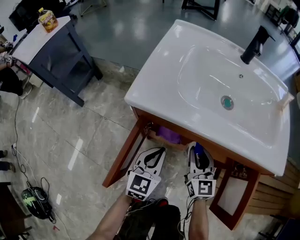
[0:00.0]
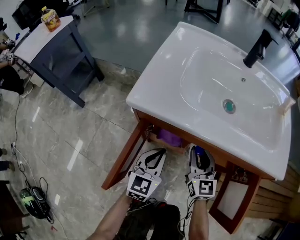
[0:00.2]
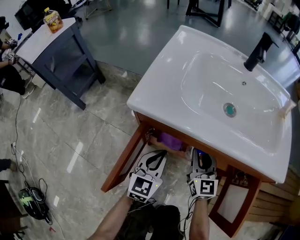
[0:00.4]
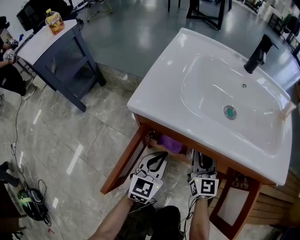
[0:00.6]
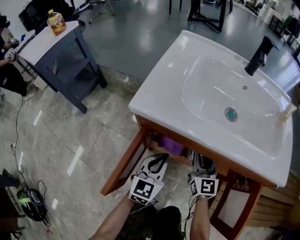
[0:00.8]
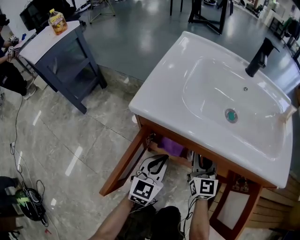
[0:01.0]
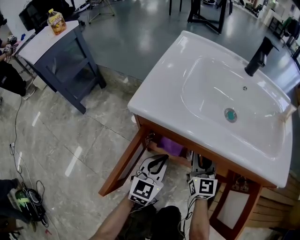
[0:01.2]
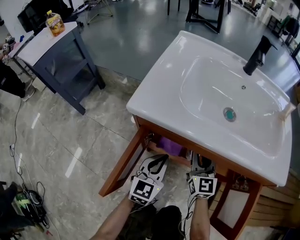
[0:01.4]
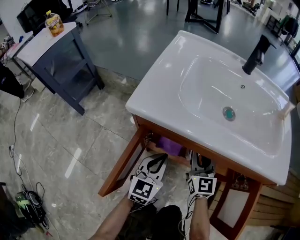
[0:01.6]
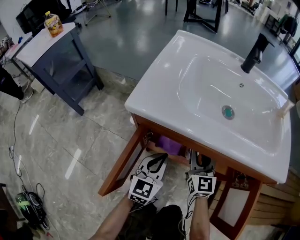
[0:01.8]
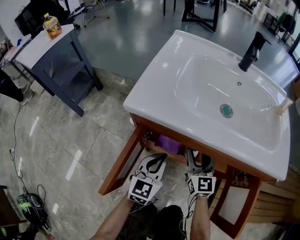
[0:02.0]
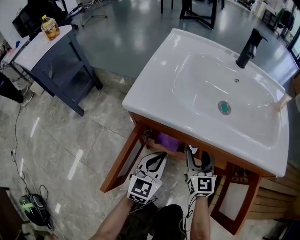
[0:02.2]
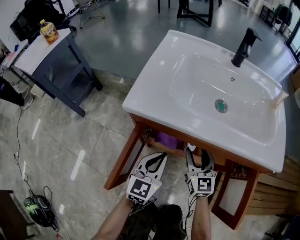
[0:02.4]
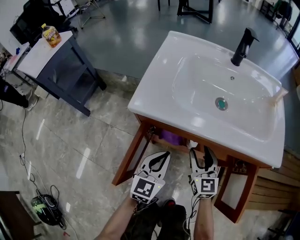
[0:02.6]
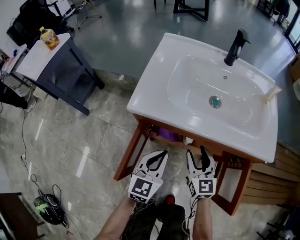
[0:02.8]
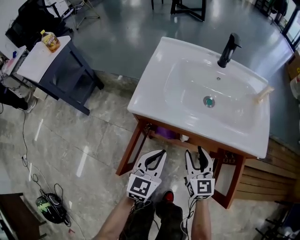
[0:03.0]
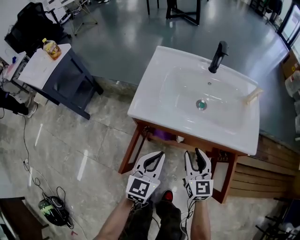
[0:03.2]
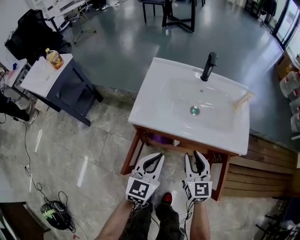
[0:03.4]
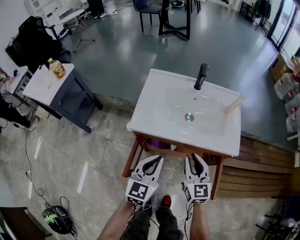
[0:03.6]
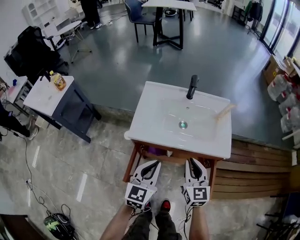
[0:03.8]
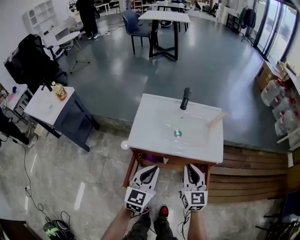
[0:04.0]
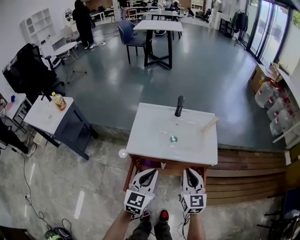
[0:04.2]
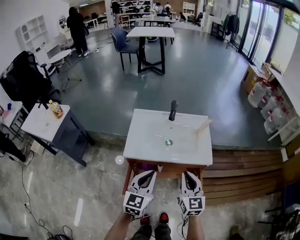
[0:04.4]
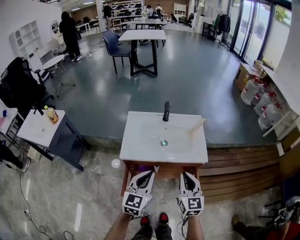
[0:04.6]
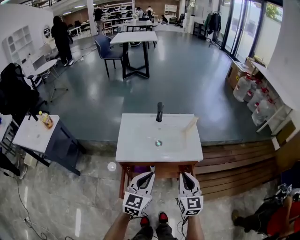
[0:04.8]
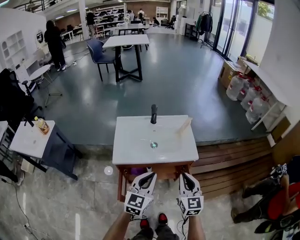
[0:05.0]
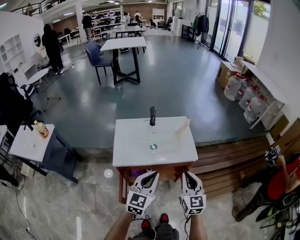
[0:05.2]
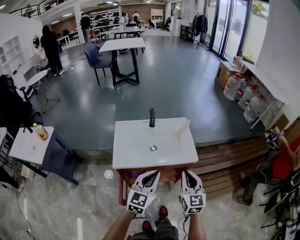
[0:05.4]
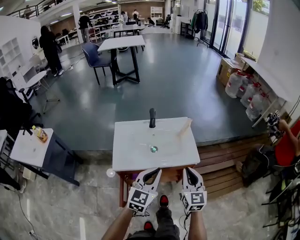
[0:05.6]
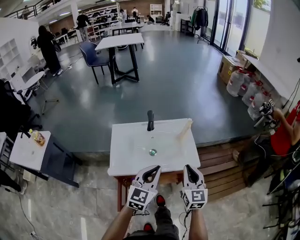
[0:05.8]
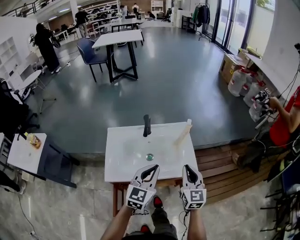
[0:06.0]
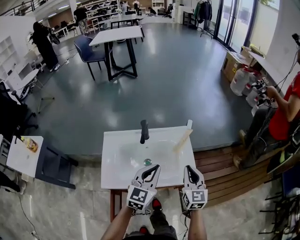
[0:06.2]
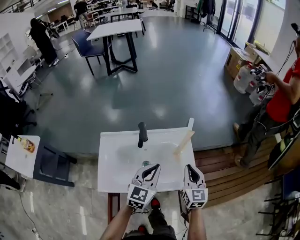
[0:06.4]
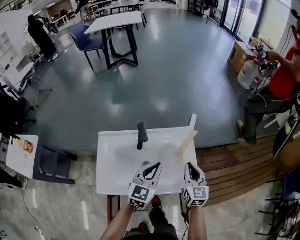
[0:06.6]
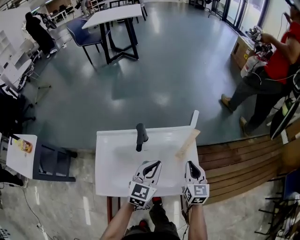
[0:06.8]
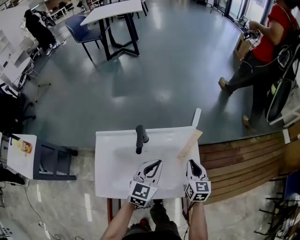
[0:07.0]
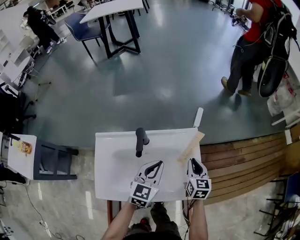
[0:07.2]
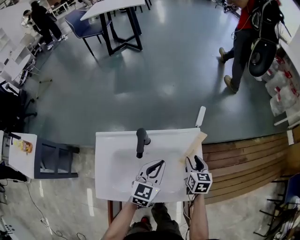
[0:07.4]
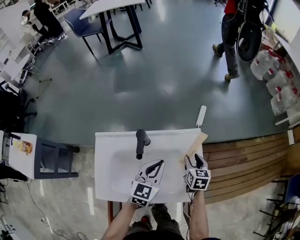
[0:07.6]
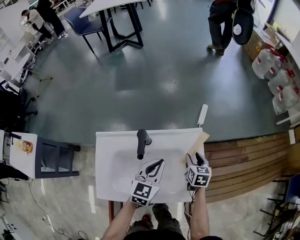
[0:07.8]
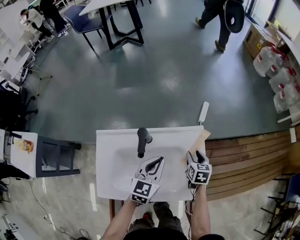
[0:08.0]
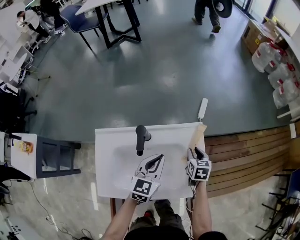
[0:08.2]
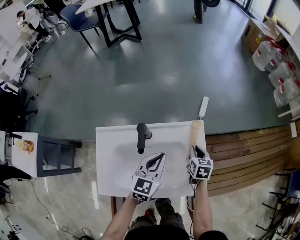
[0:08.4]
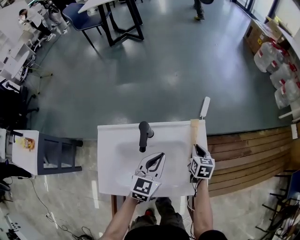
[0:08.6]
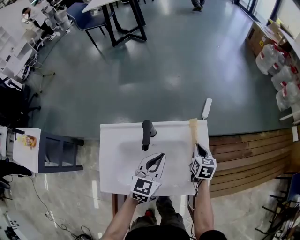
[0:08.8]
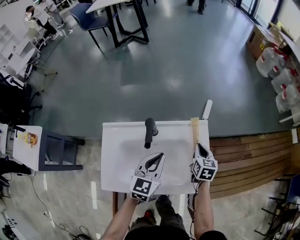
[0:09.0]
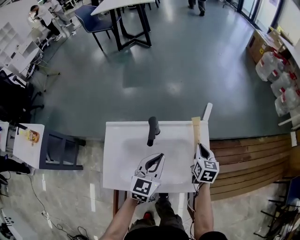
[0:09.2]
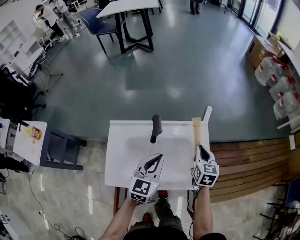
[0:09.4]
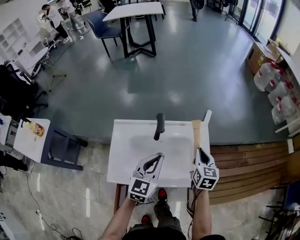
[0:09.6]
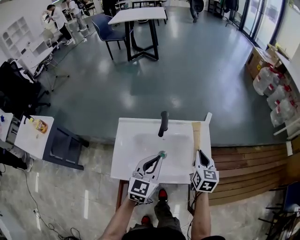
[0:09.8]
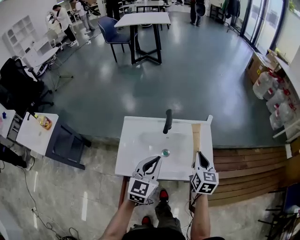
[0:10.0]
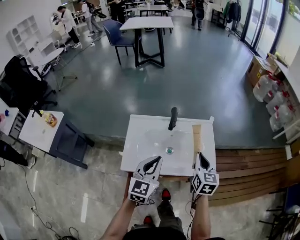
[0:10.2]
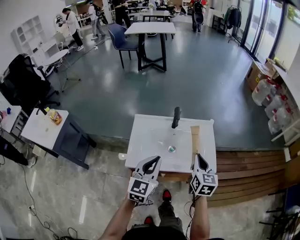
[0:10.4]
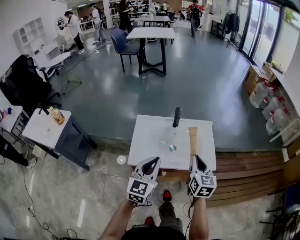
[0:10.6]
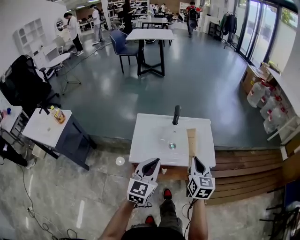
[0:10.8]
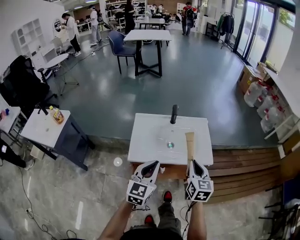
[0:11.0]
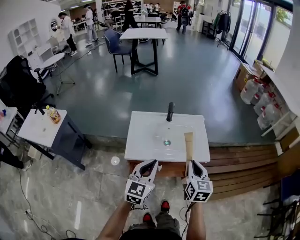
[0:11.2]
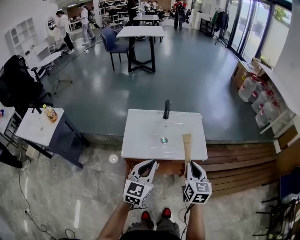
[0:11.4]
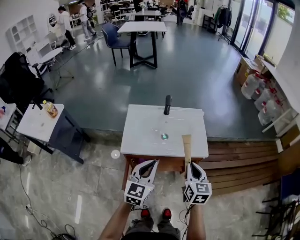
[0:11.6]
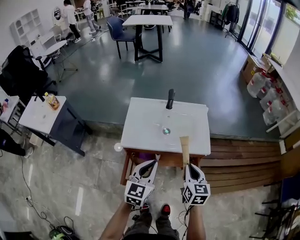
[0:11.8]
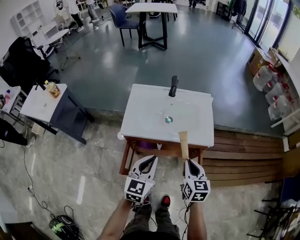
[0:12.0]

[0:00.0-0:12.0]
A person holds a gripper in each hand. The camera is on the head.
0:00.0 to 0:01.6: The right gripper heads forward, covering roughly 5 cm.
0:01.6 to 0:03.0: Both grippers travel together upward and backward, approximately 15 cm. The right gripper opens its fingers.
0:03.0 to 0:04.4: Both grippers travel together upward, about 30 cm. The right gripper closes up.
0:04.4 to 0:06.0: Both grippers travel together forward and to the right, some 15 cm.
0:06.0 to 0:07.6: The grippers both shift forward and downward by approximately 30 cm. The right gripper tilts its fingers approximately 30 degrees downward, and opens its fingers.
0:07.6 to 0:09.0: The right gripper closes.
0:09.0 to 0:10.4: The two grippers go roughly 30 cm backward and upward. The right gripper rotates some 20 degrees.
0:10.4 to 0:12.0: The right gripper goes some 15 cm backward. Meanwhile the left gripper goes approximately 15 cm backward and downward.

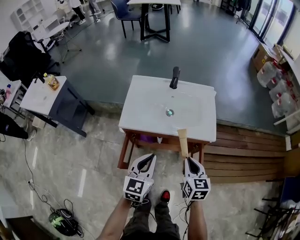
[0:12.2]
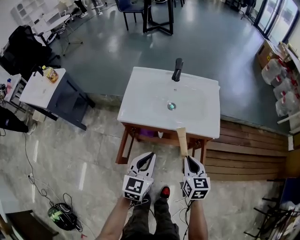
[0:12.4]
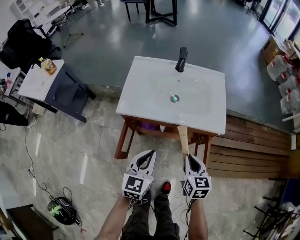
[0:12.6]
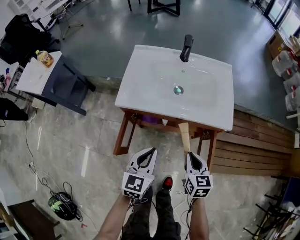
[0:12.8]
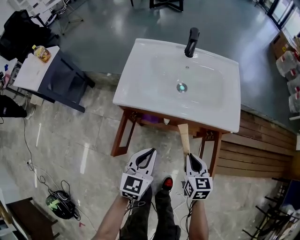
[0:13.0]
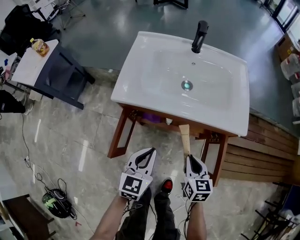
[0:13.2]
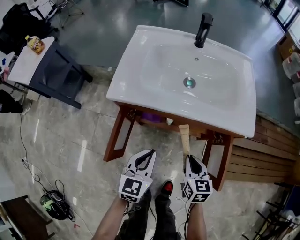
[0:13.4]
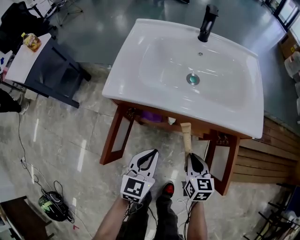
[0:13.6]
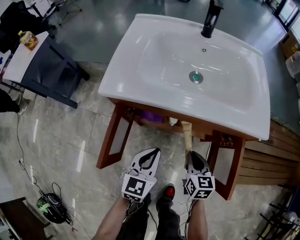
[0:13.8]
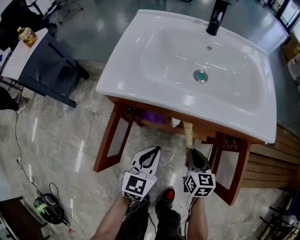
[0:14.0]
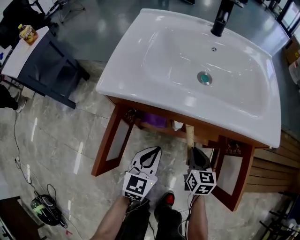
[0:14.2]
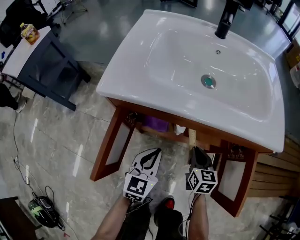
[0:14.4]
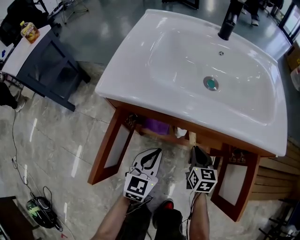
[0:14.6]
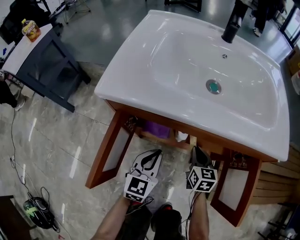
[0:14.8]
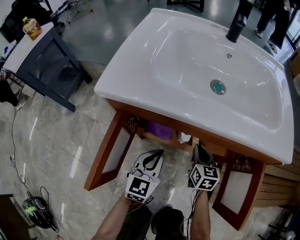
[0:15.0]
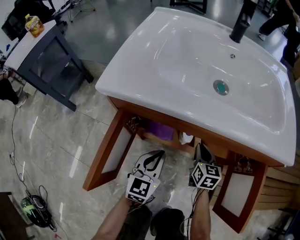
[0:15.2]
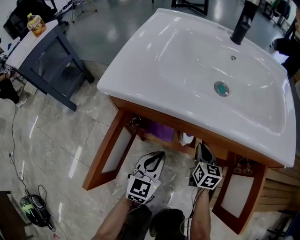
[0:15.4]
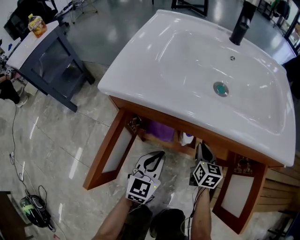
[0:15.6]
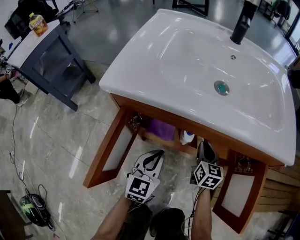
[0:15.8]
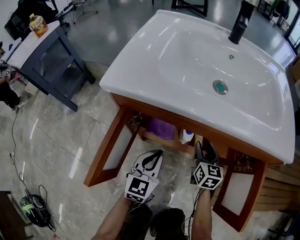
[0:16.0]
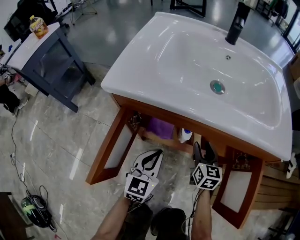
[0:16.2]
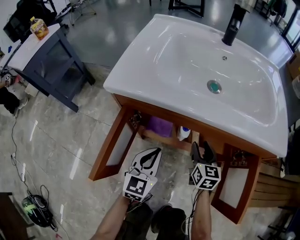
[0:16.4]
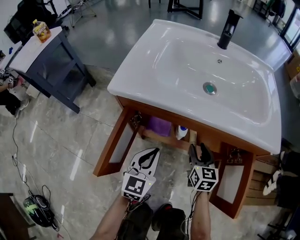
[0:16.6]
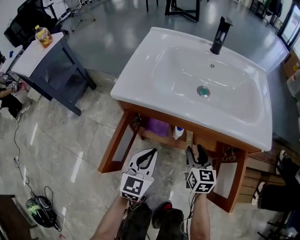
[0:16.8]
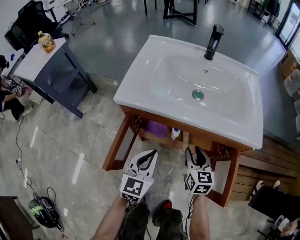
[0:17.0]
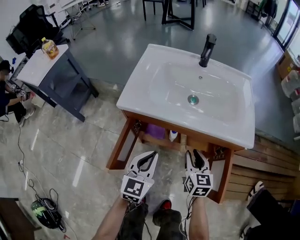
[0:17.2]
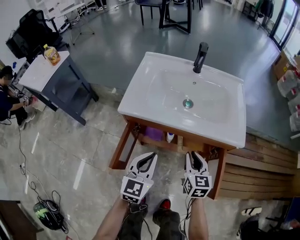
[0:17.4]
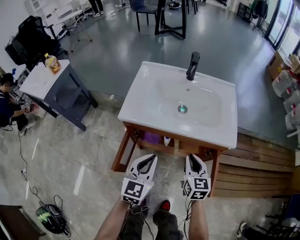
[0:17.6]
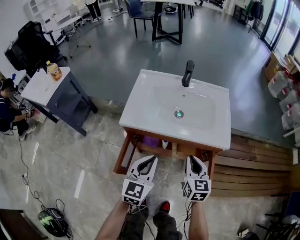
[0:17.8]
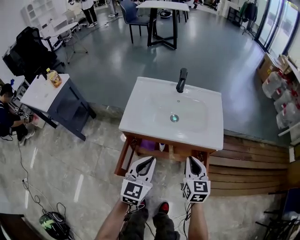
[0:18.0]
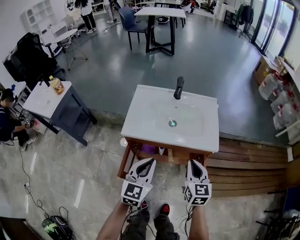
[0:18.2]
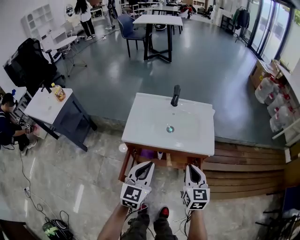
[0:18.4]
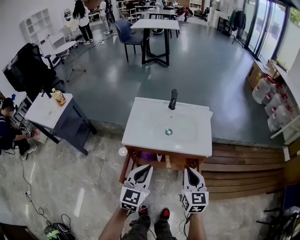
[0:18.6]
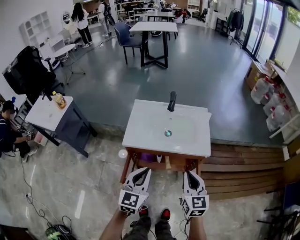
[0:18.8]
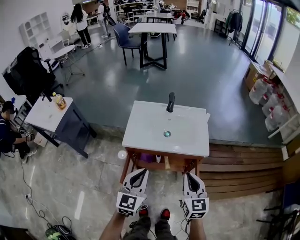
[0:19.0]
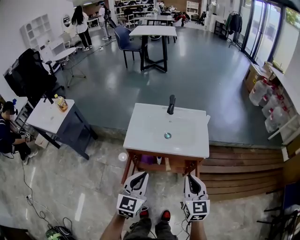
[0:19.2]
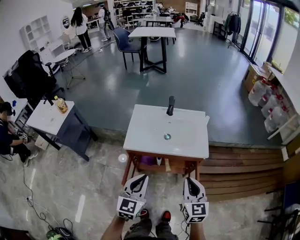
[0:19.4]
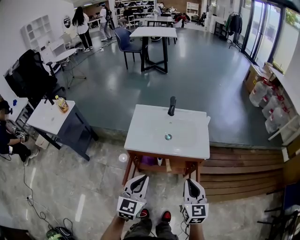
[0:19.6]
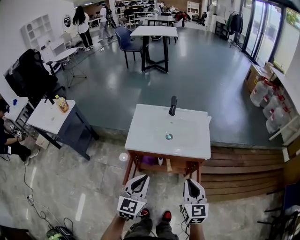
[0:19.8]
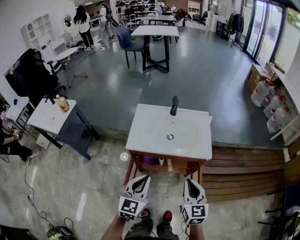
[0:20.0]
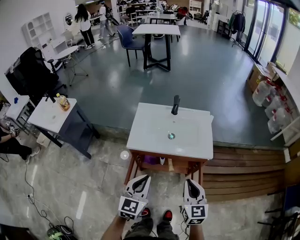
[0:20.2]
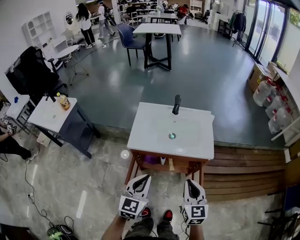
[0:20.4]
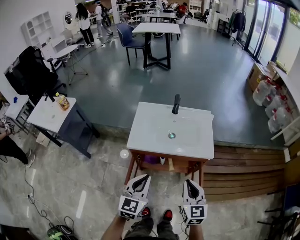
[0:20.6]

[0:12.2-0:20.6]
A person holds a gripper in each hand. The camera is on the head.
0:12.2 to 0:13.6: Both grippers move downward, about 30 cm.
0:13.6 to 0:15.0: The grippers both shift downward and forward by approximately 20 cm.
0:15.0 to 0:16.4: The right gripper opens its fingers.
0:16.4 to 0:17.8: The two grippers go about 30 cm upward. The right gripper closes its fingers.
0:17.8 to 0:19.2: The two grippers go about 20 cm upward and backward.
0:19.2 to 0:20.6: The grippers stay close to where they were, moving slightly.

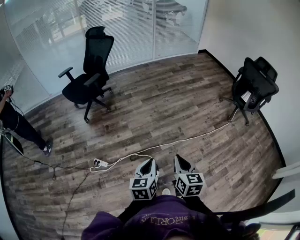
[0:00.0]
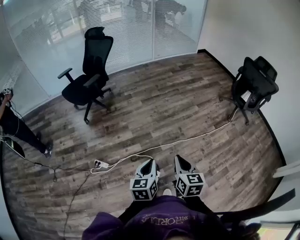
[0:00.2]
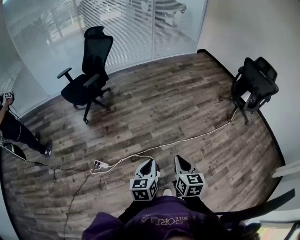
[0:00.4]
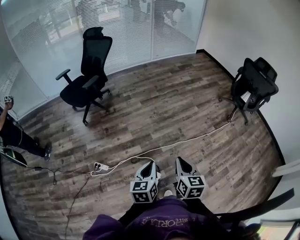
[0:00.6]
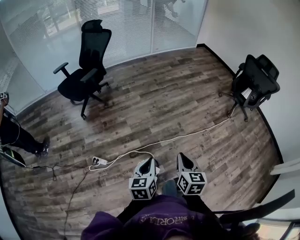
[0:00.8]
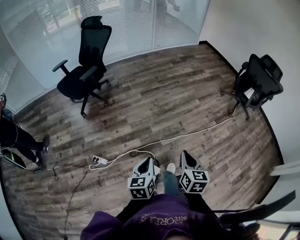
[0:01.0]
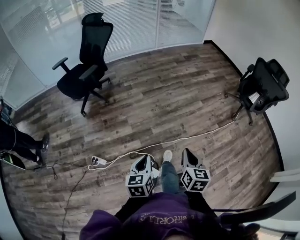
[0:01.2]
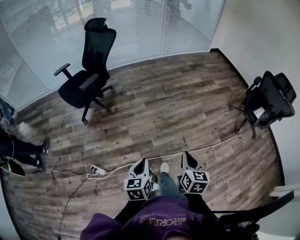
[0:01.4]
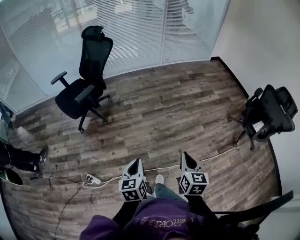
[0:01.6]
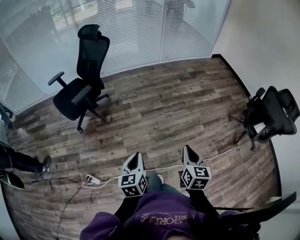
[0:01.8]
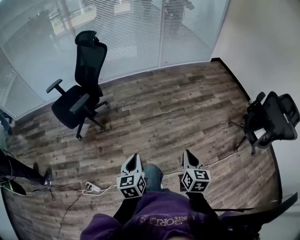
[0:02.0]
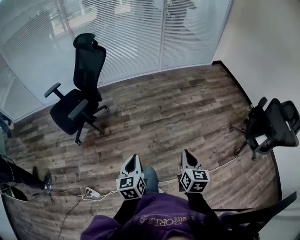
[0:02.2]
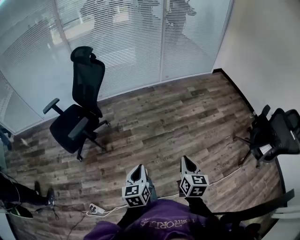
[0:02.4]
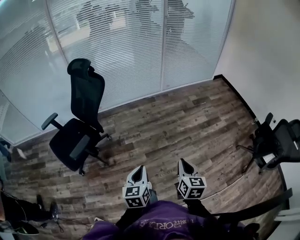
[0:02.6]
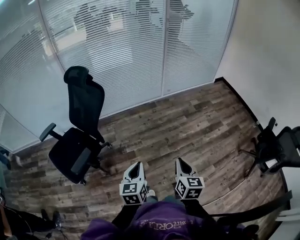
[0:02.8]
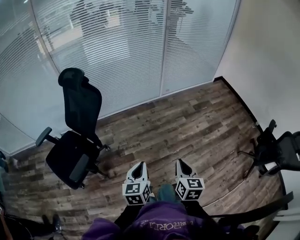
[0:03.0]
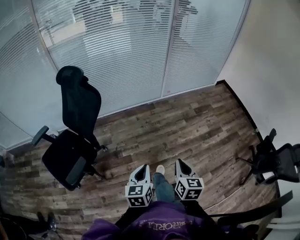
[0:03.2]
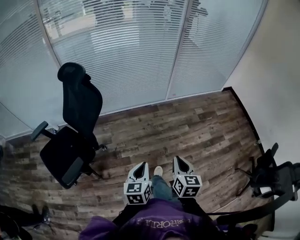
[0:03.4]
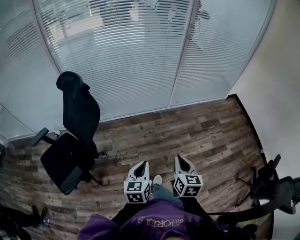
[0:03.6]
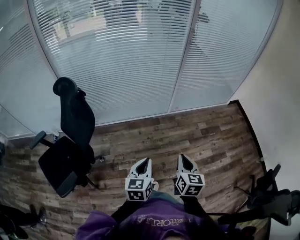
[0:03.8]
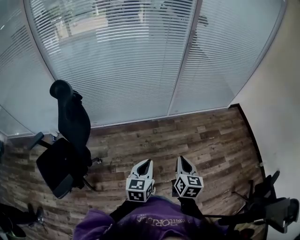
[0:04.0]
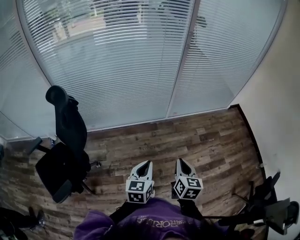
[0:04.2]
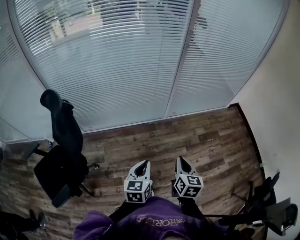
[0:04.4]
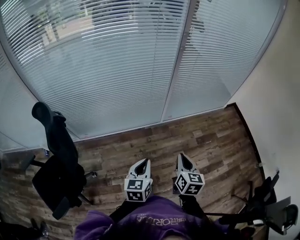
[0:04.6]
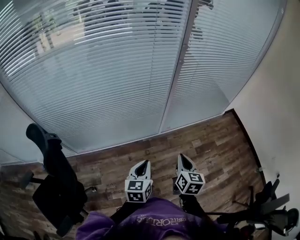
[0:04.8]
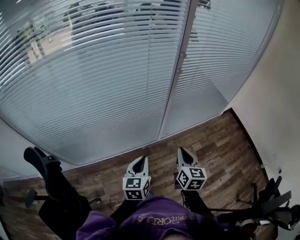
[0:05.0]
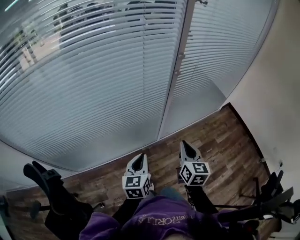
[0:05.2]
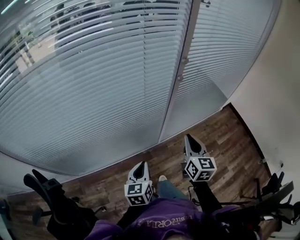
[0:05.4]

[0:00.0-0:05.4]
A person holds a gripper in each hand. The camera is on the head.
0:00.0 to 0:01.4: Both grippers travel together forward, approximately 20 cm.
0:01.4 to 0:02.8: The pair of grippers is taken forward, approximately 60 cm.
0:02.8 to 0:04.0: The grippers both shift forward by approximately 40 cm.
0:04.0 to 0:05.4: The two grippers travel together, forward, roughly 50 cm.
